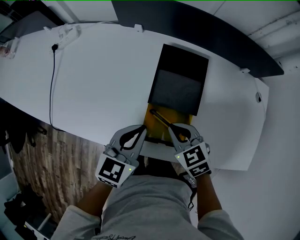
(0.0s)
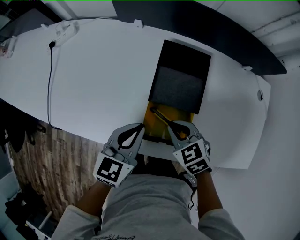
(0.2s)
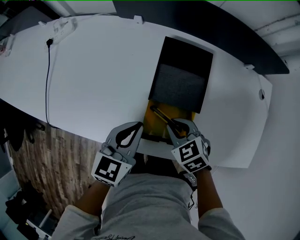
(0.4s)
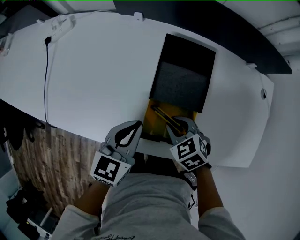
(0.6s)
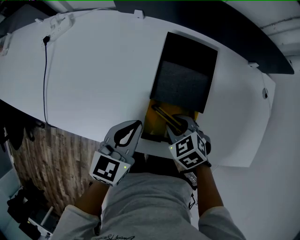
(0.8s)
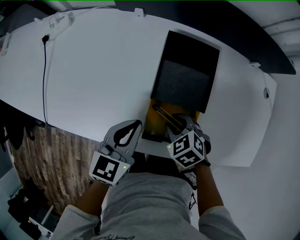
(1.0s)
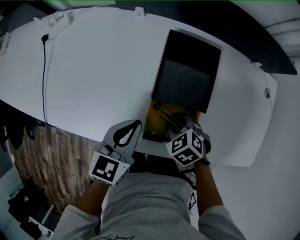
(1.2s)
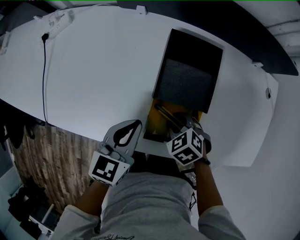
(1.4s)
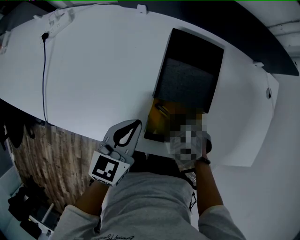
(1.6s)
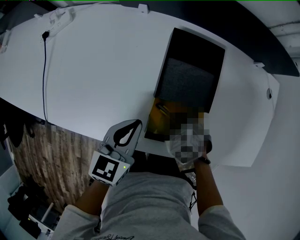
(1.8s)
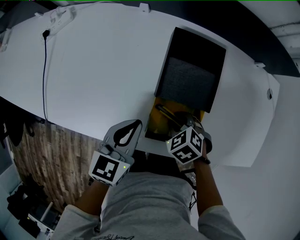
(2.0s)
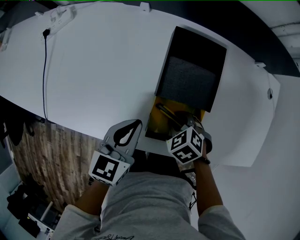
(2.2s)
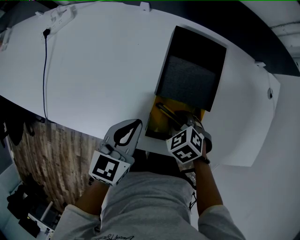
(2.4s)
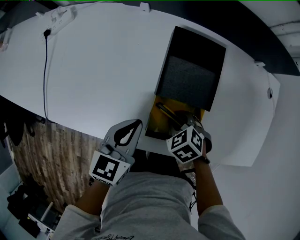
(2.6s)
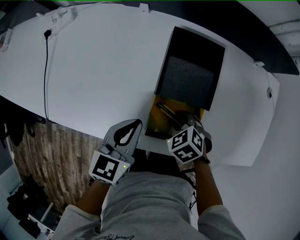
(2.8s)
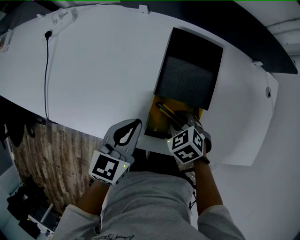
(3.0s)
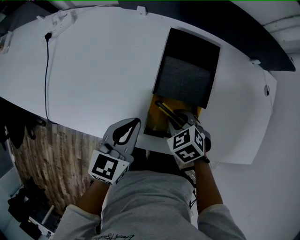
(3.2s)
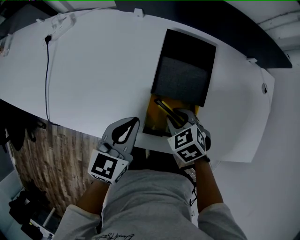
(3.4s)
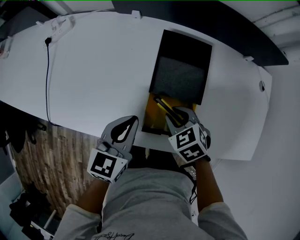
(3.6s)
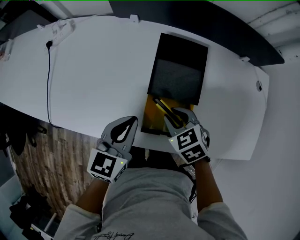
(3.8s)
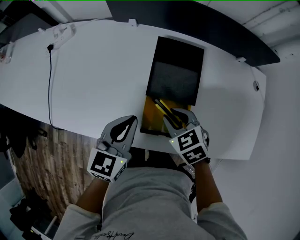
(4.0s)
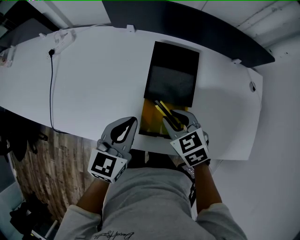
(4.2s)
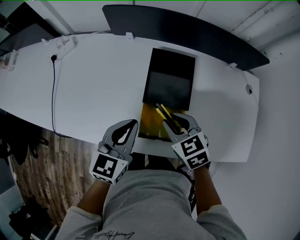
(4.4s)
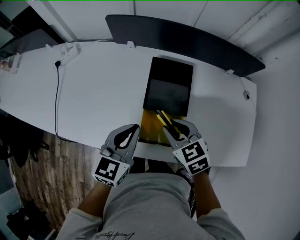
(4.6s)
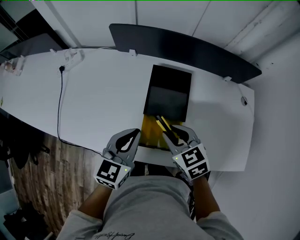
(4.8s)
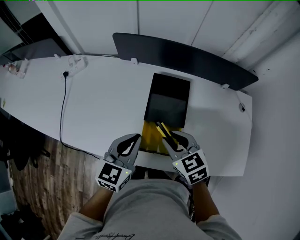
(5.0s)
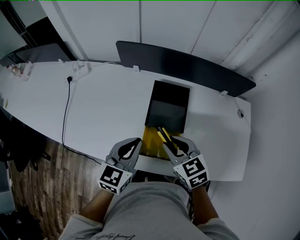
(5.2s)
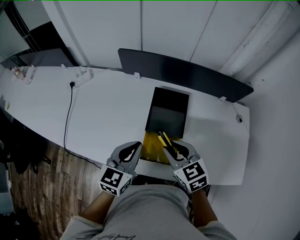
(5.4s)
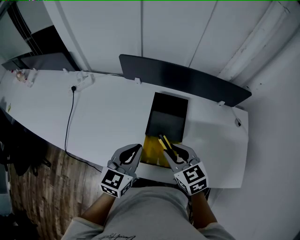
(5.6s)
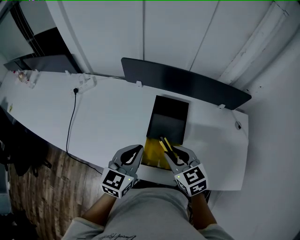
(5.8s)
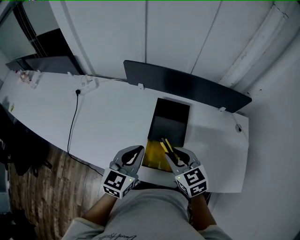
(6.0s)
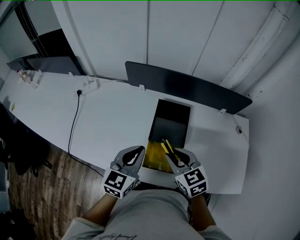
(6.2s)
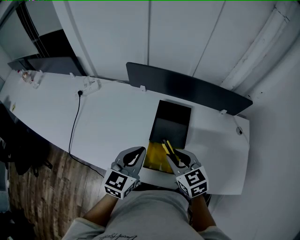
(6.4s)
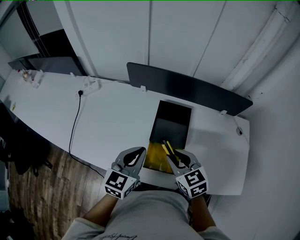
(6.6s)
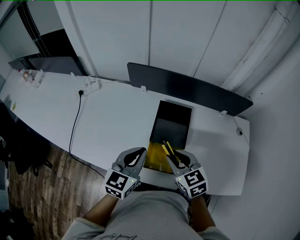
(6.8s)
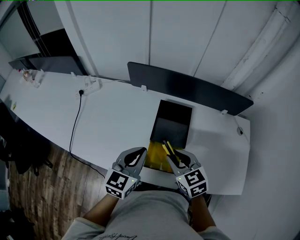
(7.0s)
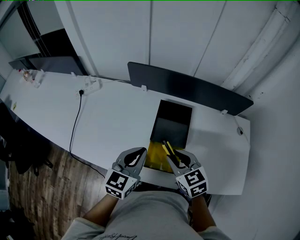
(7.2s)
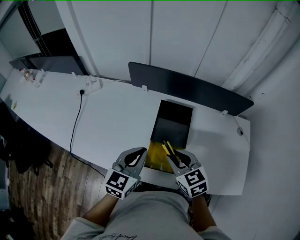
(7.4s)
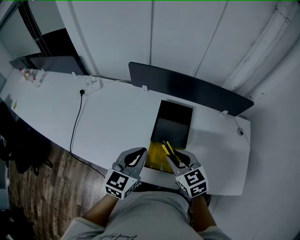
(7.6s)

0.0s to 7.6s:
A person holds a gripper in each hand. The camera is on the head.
0.0s to 1.6s: The right gripper moves downward, approximately 10 cm, turns by approximately 30 degrees, and opens, while the left gripper ends up approximately 5 cm from where it was.
1.6s to 3.0s: Neither gripper changes place.
3.0s to 4.6s: The right gripper moves upward, about 15 cm, and changes its angle by about 30 degrees; the left gripper moves upward, some 10 cm.
4.6s to 6.0s: Both grippers move upward, some 5 cm.
6.0s to 7.6s: Neither gripper changes place.

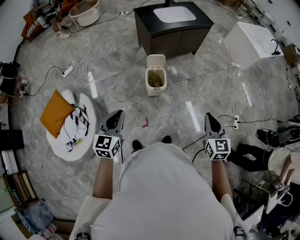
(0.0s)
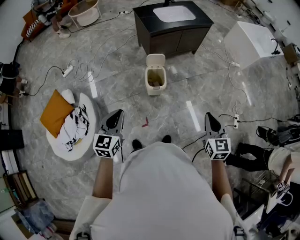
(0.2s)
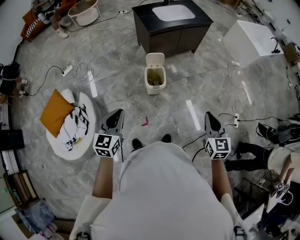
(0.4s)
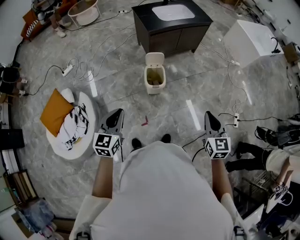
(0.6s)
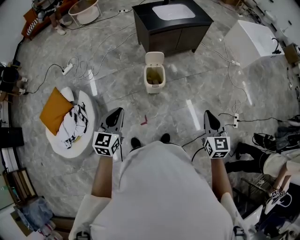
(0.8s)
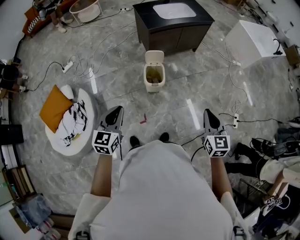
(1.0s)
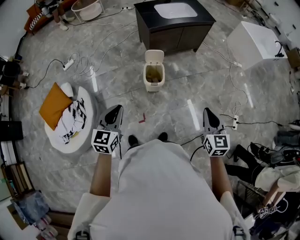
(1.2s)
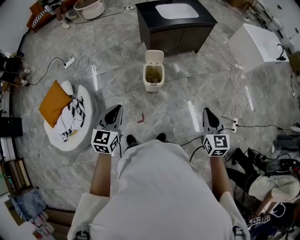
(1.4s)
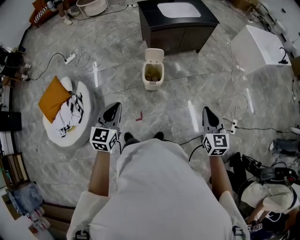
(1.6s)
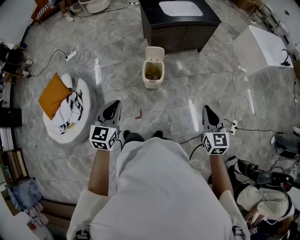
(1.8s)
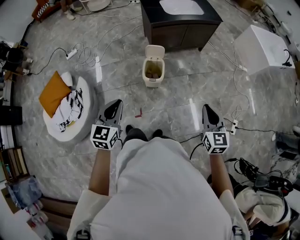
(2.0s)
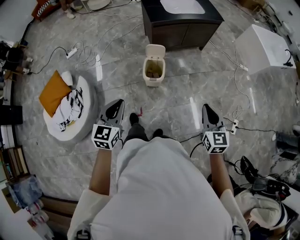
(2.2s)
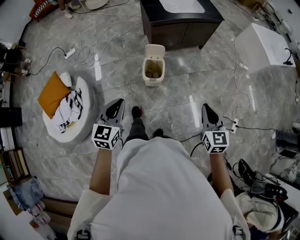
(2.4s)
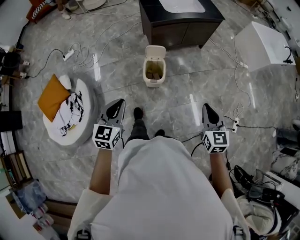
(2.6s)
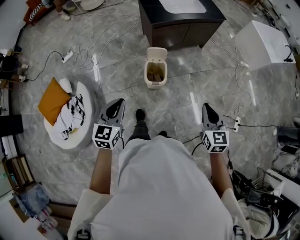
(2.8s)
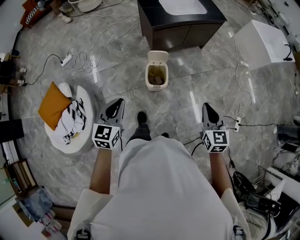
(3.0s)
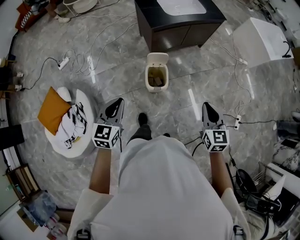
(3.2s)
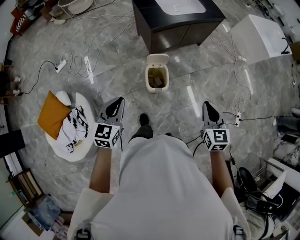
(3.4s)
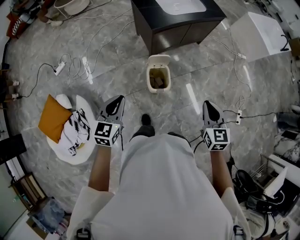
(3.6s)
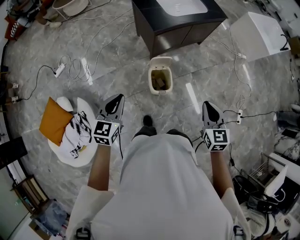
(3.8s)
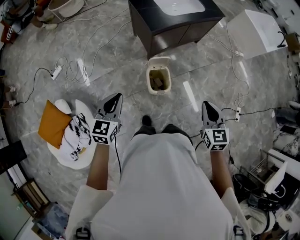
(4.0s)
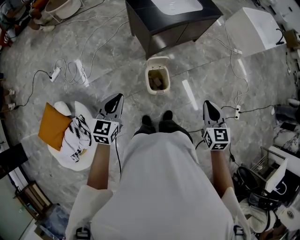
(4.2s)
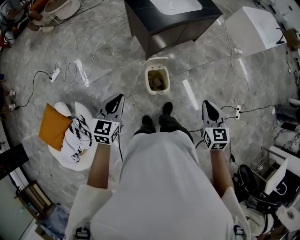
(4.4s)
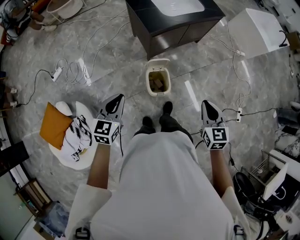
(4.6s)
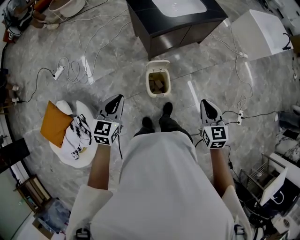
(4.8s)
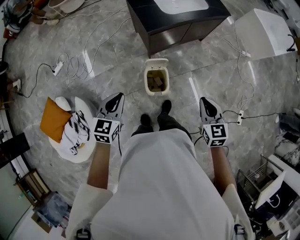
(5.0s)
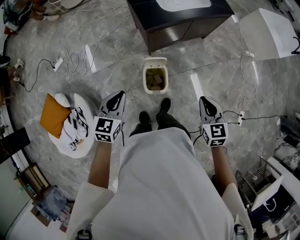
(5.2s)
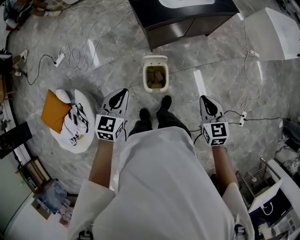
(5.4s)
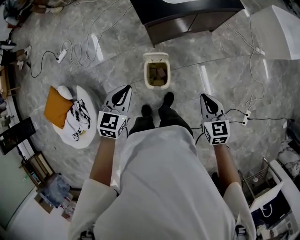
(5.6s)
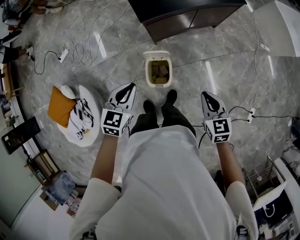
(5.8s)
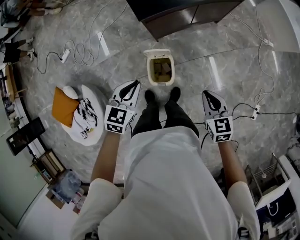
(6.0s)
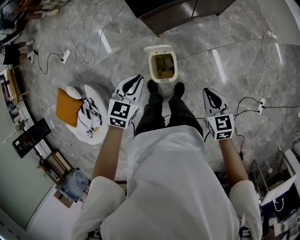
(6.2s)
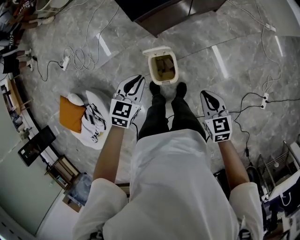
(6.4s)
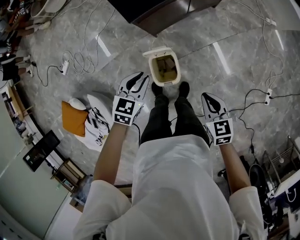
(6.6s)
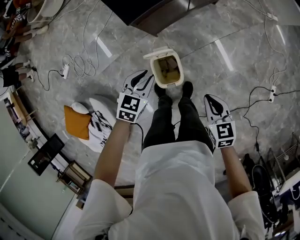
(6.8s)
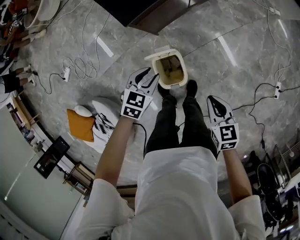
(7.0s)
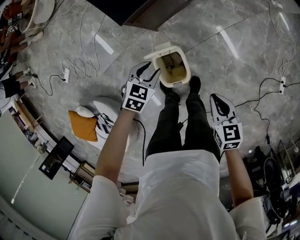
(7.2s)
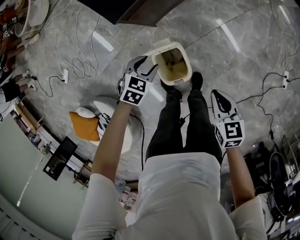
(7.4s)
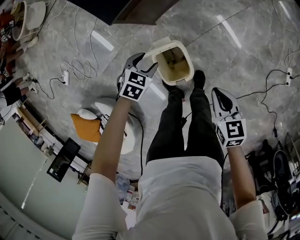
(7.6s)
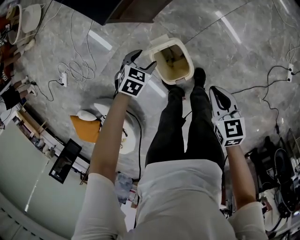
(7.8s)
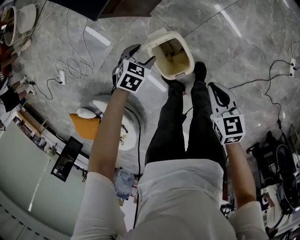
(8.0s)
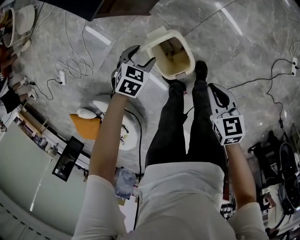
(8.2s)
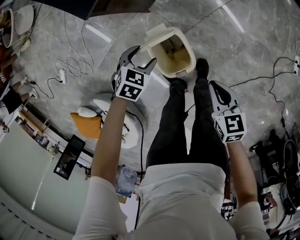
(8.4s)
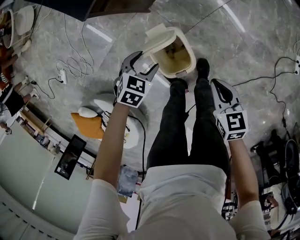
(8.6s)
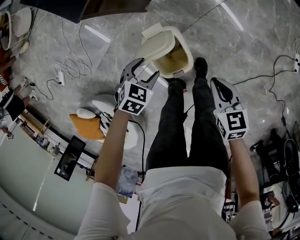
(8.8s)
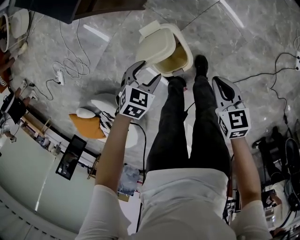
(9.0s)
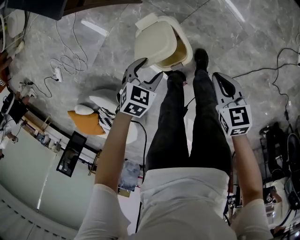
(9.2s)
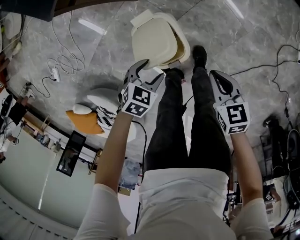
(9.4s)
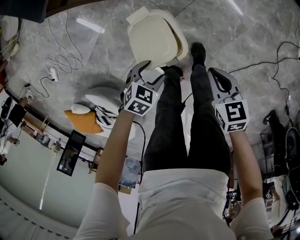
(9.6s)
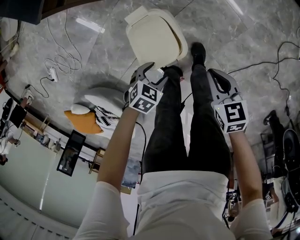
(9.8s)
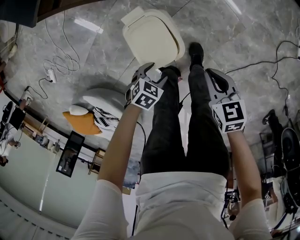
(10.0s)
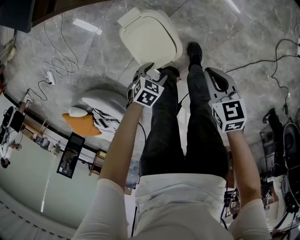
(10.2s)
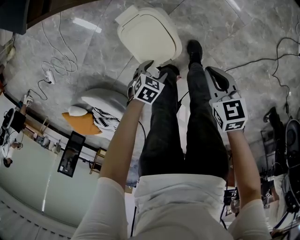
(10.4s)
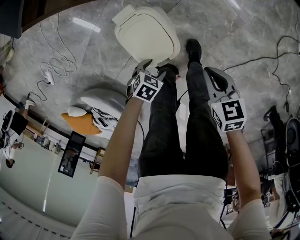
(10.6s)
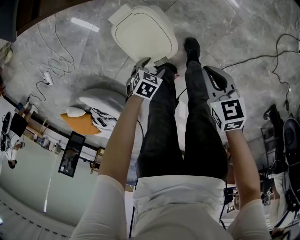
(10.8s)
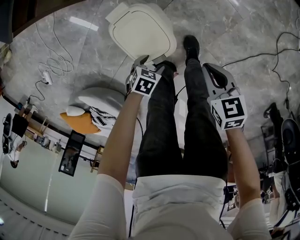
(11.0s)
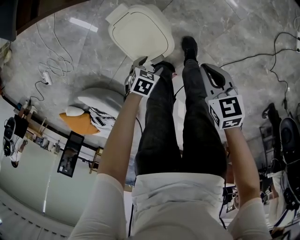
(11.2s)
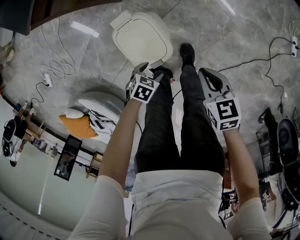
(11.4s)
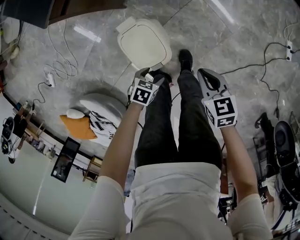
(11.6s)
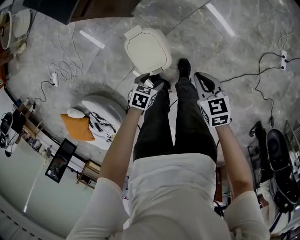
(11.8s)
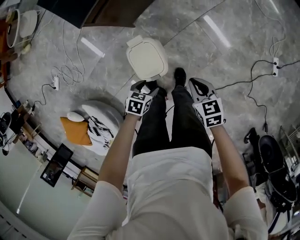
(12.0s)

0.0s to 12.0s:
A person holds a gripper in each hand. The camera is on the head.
0.0s to 1.6s: Both grippers travel together to the right, roughly 5 cm.
1.6s to 3.0s: The right gripper shifts some 15 cm forward and to the left; the left gripper heads forward, covering about 15 cm.
3.0s to 4.4s: The left gripper heads forward and to the left, covering roughly 15 cm. Meanwhile the right gripper travels to the left and forward by about 10 cm.
4.4s to 6.0s: The left gripper goes roughly 25 cm to the right, forward and downward. Meanwhile the right gripper heads forward, downward and to the right, covering about 20 cm, and swivels roughly 20 degrees.
6.0s to 7.6s: The right gripper heads downward, covering about 15 cm, and turns by approximately 30 degrees. Meanwhile the left gripper shifts approximately 30 cm downward, changes its angle by roughly 40 degrees, and opens.
7.6s to 9.0s: The right gripper travels downward by some 10 cm. The left gripper heads backward, covering roughly 10 cm.
9.0s to 10.4s: The right gripper travels downward by approximately 5 cm. The left gripper is displaced downward by roughly 15 cm.
10.4s to 12.0s: The two grippers go about 15 cm upward. The left gripper turns by about 20 degrees.

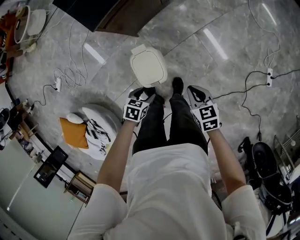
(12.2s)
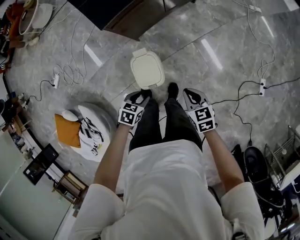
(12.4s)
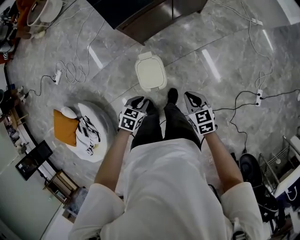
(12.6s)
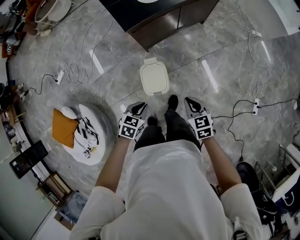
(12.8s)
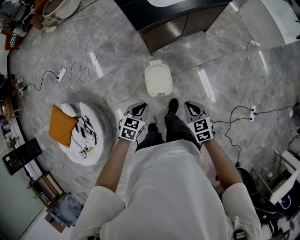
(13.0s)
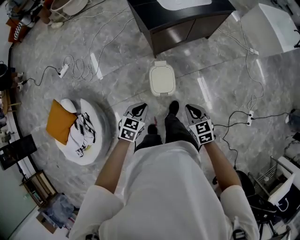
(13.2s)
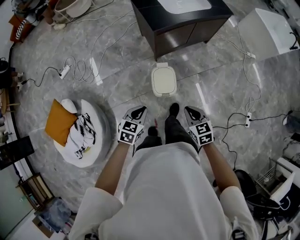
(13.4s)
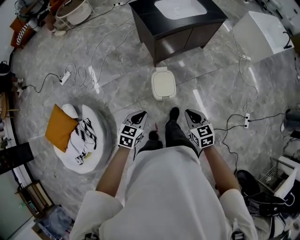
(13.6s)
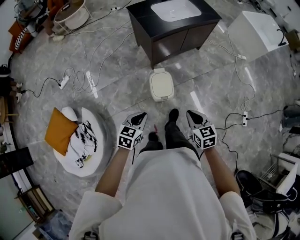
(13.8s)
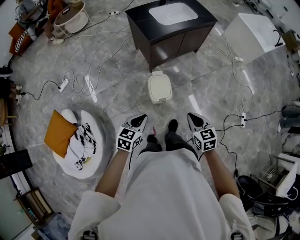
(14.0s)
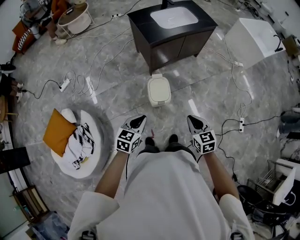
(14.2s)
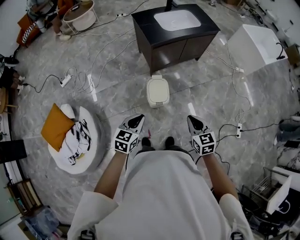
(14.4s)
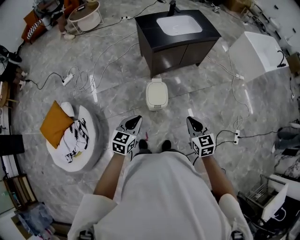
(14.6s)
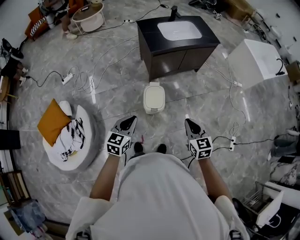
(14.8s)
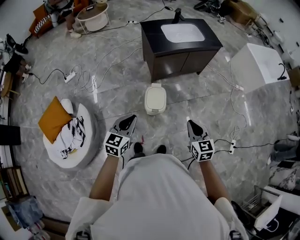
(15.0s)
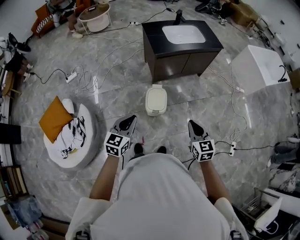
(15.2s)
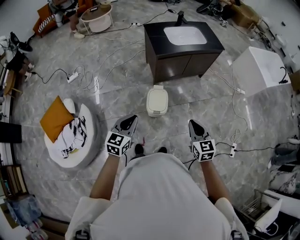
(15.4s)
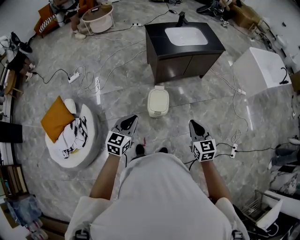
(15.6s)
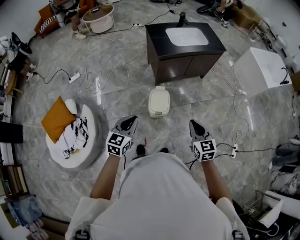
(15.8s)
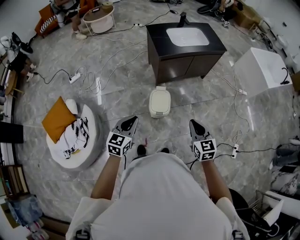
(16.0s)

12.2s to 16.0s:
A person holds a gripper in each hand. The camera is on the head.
12.2s to 13.4s: The two grippers go about 25 cm upward, backward and to the left. The right gripper rotates roughly 20 degrees, while the left gripper turns by approximately 30 degrees, and closes up.
13.4s to 14.8s: The right gripper moves upward and to the right, some 15 cm. The left gripper goes some 15 cm upward and backward.
14.8s to 16.0s: There are only small adjustments of the grippers.
